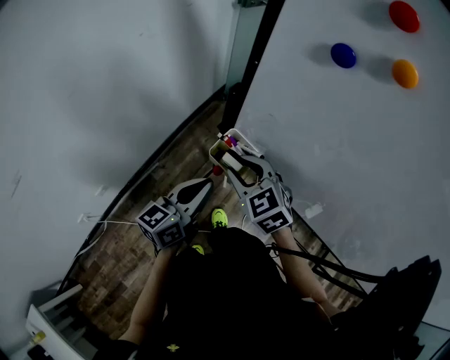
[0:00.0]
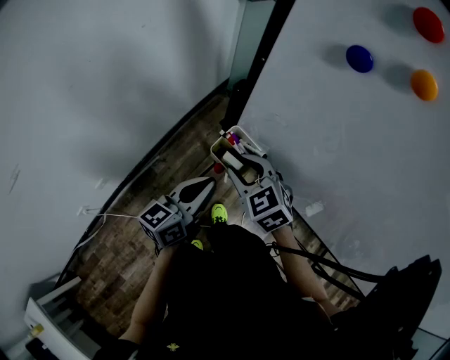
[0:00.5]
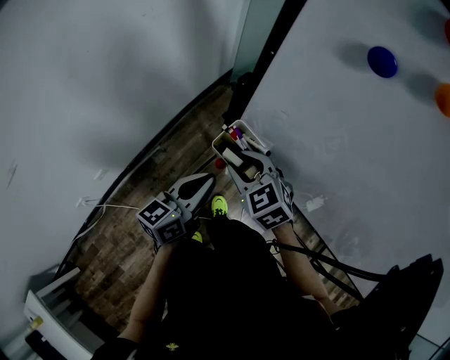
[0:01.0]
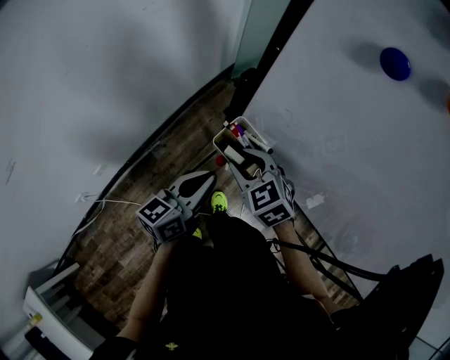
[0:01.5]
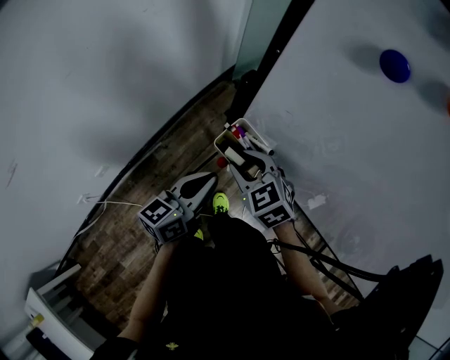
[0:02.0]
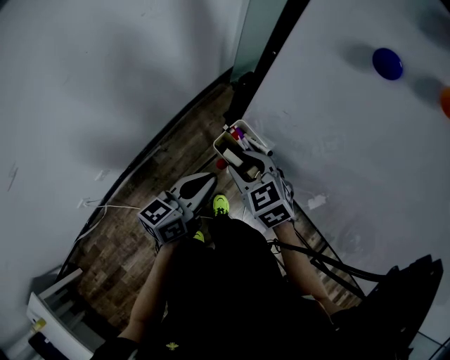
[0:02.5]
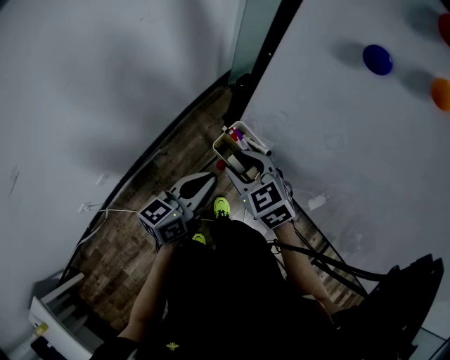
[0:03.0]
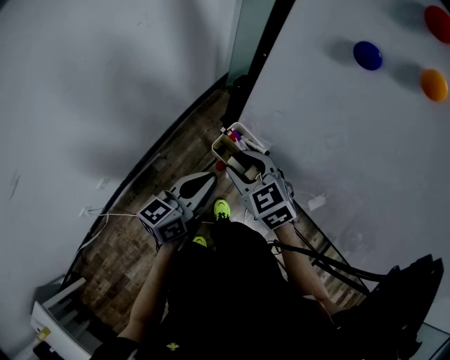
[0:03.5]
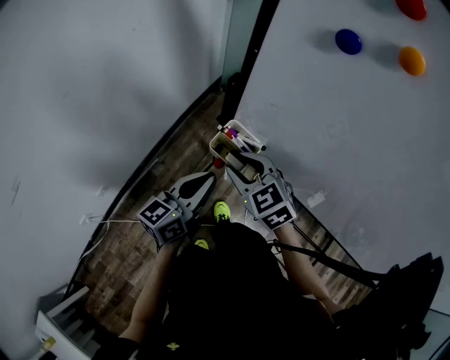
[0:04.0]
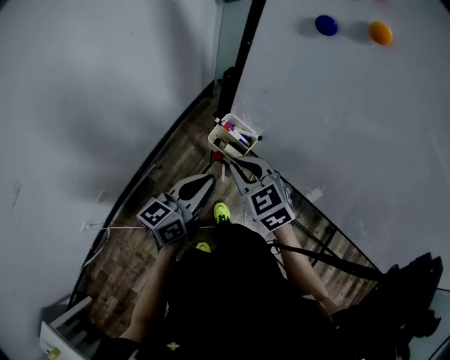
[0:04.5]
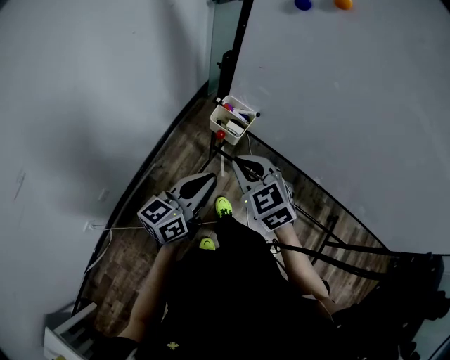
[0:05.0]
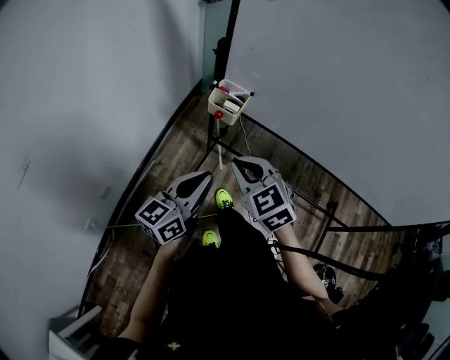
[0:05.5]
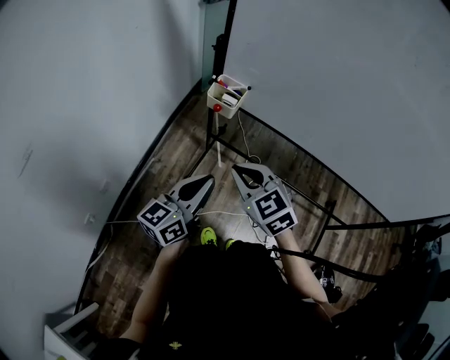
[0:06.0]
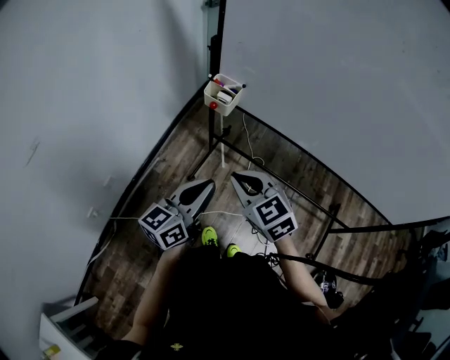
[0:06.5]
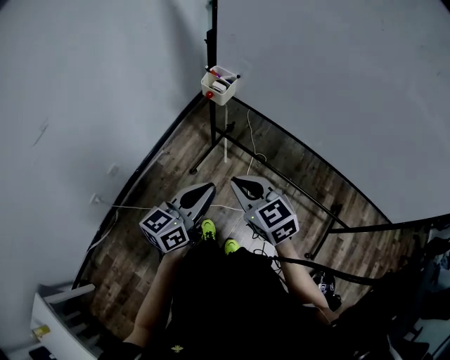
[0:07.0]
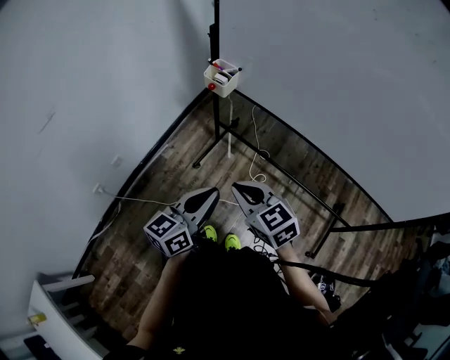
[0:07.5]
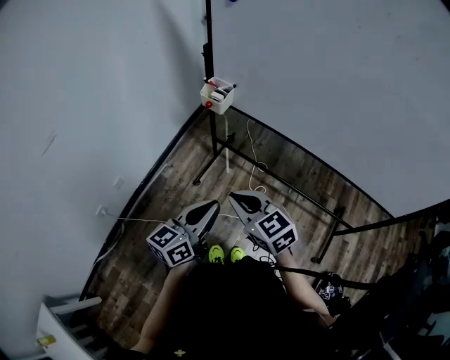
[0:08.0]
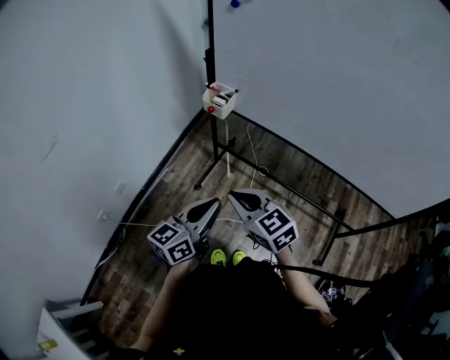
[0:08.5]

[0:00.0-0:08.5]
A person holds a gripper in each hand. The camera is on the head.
0.0 to 4.0 s: The grippers move only a little.
4.0 to 6.5 s: The two grippers go roughly 30 cm backward. The right gripper closes its fingers.
6.5 to 8.5 s: The two grippers go approximately 10 cm backward.

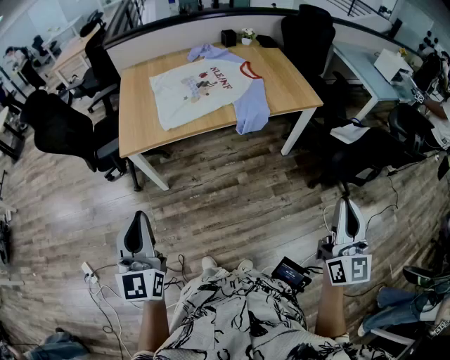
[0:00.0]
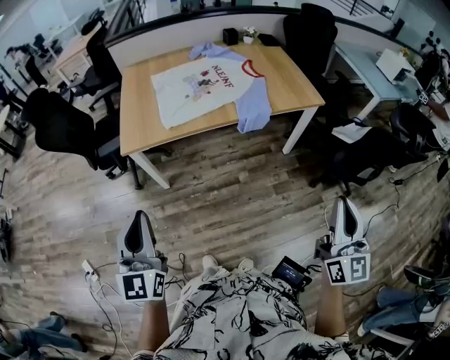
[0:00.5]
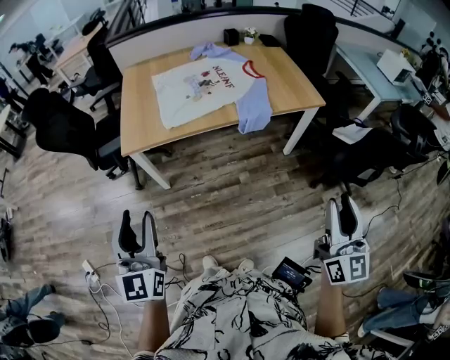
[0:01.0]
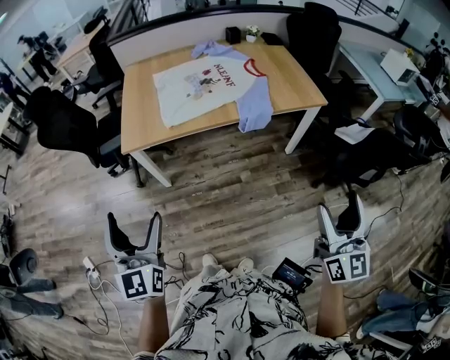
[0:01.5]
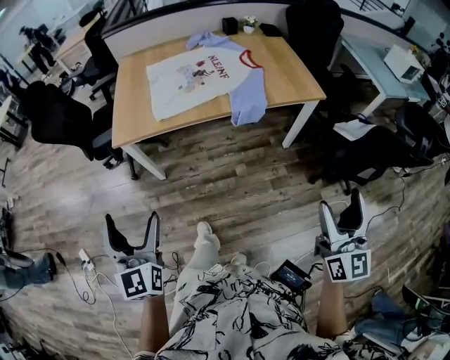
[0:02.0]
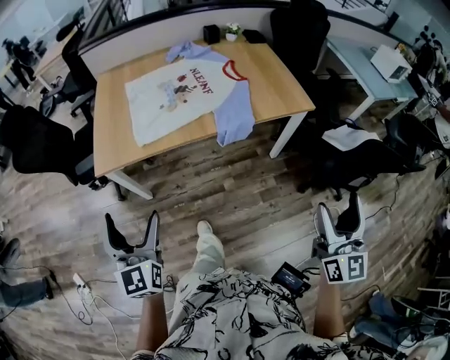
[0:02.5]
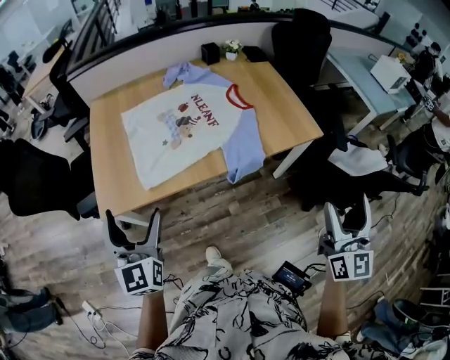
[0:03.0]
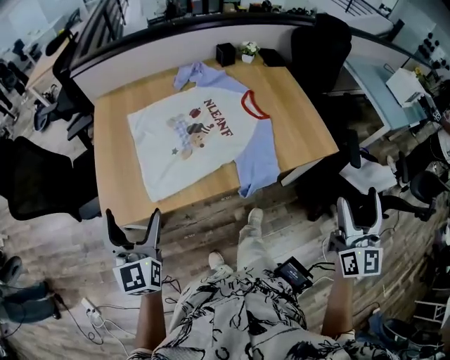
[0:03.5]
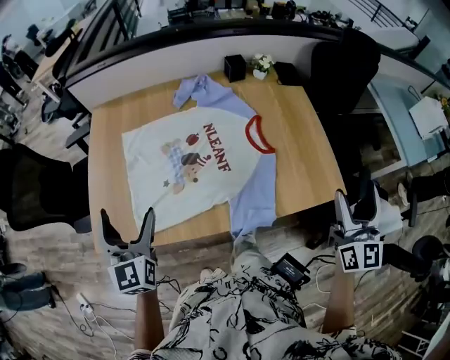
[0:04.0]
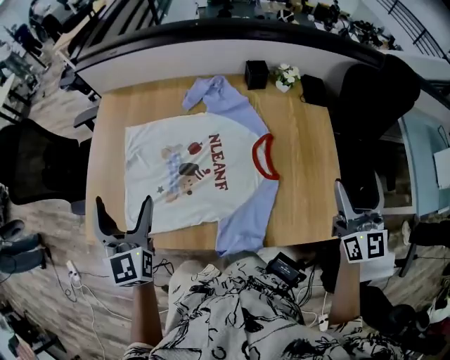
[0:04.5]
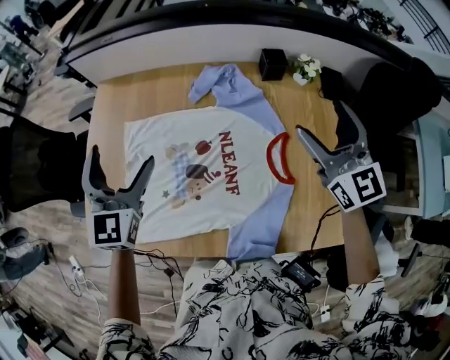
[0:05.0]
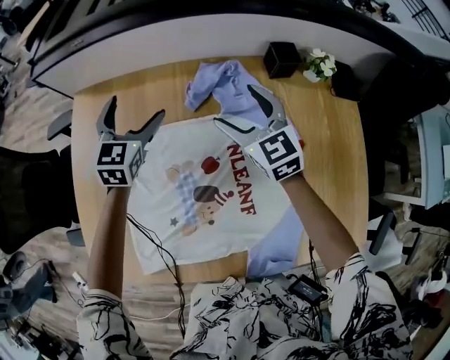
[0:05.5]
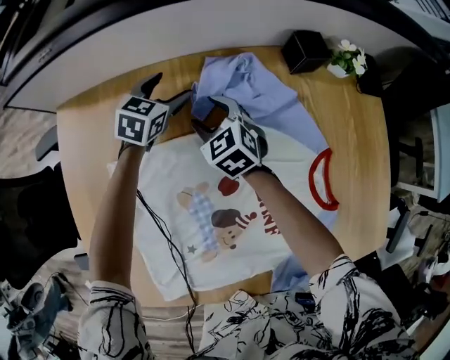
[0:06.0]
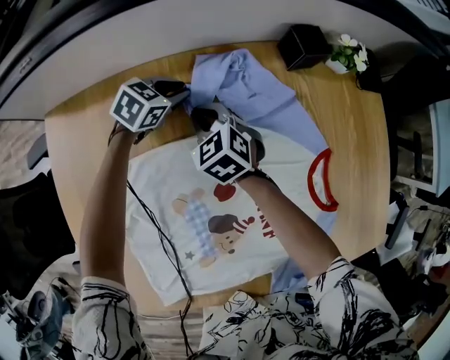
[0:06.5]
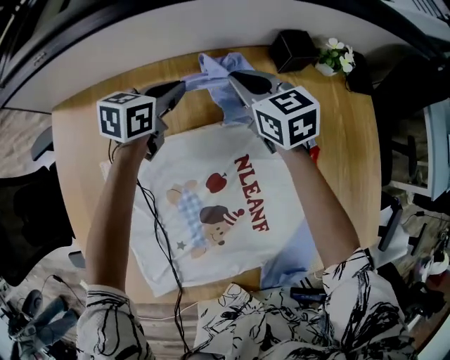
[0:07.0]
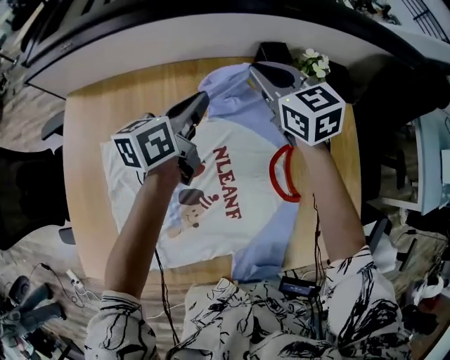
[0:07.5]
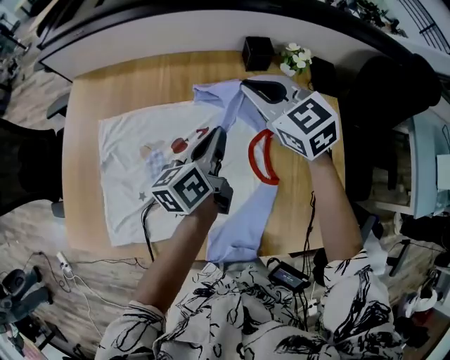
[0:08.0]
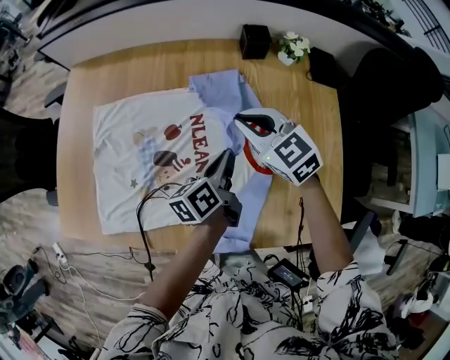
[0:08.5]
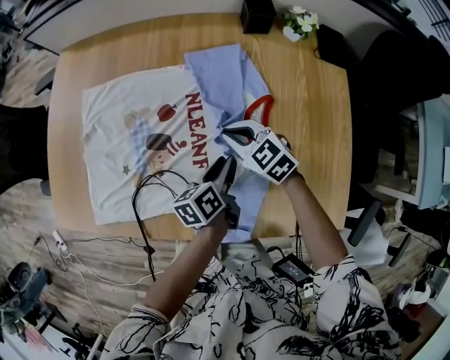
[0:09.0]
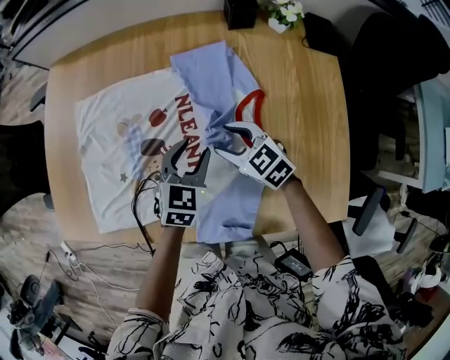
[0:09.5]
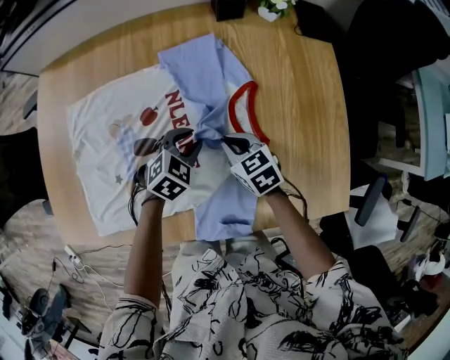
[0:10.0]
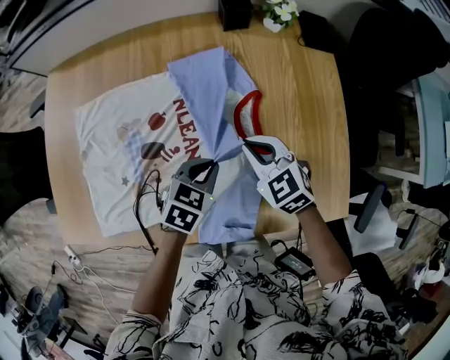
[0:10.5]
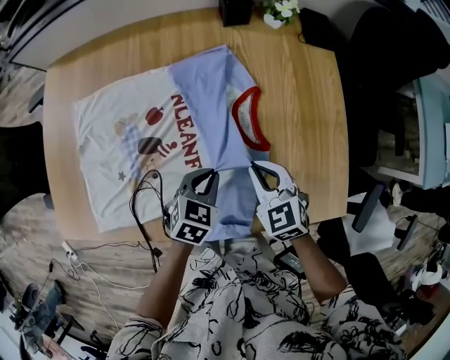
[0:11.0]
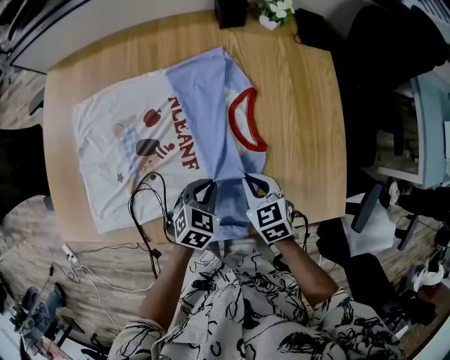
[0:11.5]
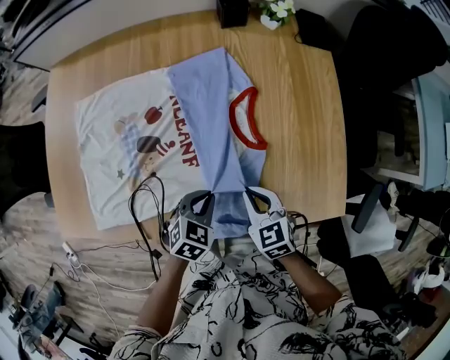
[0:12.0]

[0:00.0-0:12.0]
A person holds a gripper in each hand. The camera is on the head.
0.0 to 2.0 s: The left gripper opens up. The right gripper moves to the right, roughly 5 cm, and opens its fingers.
2.0 to 4.0 s: The two grippers travel together, forward, about 60 cm.
4.0 to 6.0 s: The left gripper shifts approximately 70 cm forward and downward, and tips its fingers downward by some 30 degrees. Meanwhile the right gripper moves forward, downward and to the left, approximately 80 cm, and angles its fingers downward, by roughly 40 degrees.
6.0 to 8.0 s: The right gripper changes place by some 35 cm, and closes. Meanwhile the left gripper shifts by about 40 cm, rolls counterclockwise, seen from behind, by about 60 degrees, and closes its fingers.
8.0 to 10.0 s: The left gripper moves up and down over about 20 cm, changing direction 2 times, and rotates around the line of its fingers by some 70 degrees, clockwise from behind. Meanwhile the right gripper is displaced downward and backward by some 35 cm, changes its angle by some 30 degrees, and opens, then closes again.
10.0 to 12.0 s: The right gripper goes some 15 cm backward and to the right; the left gripper shifts some 15 cm backward.

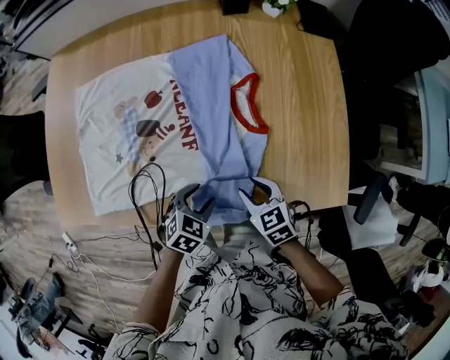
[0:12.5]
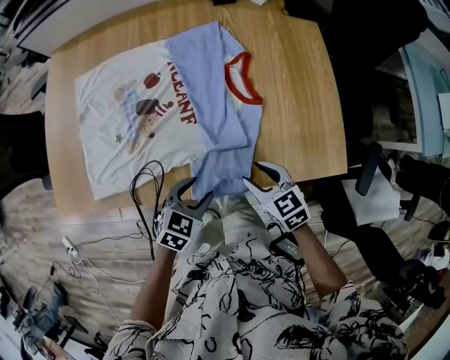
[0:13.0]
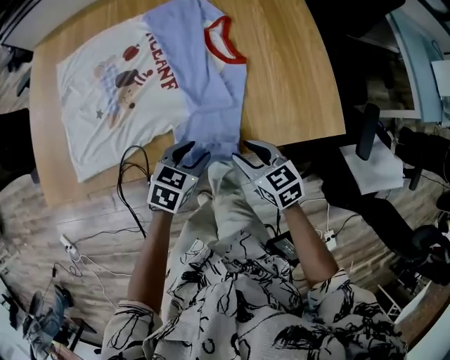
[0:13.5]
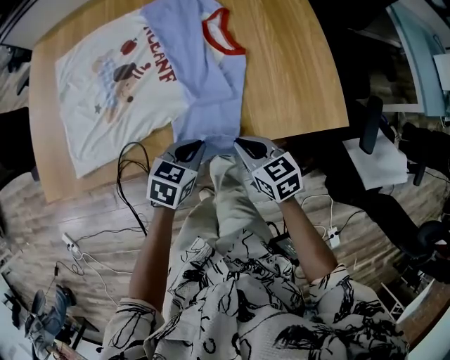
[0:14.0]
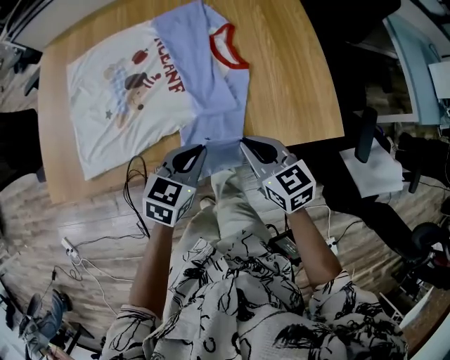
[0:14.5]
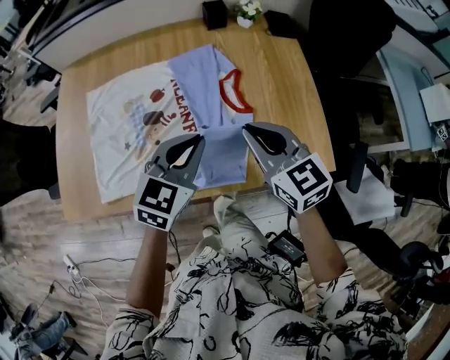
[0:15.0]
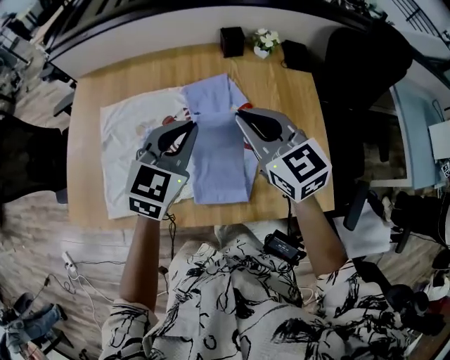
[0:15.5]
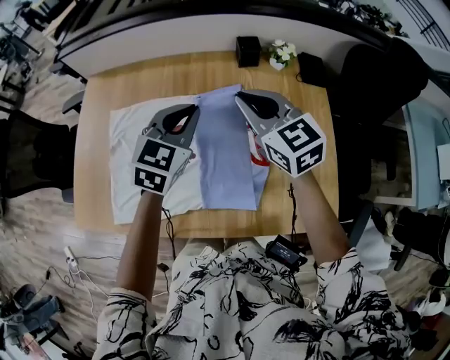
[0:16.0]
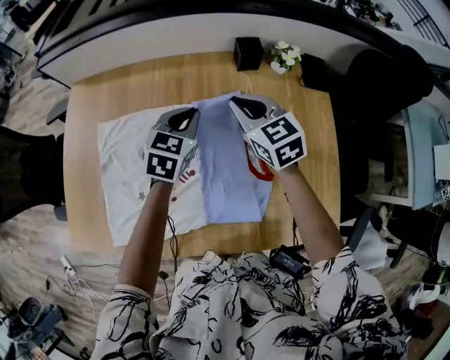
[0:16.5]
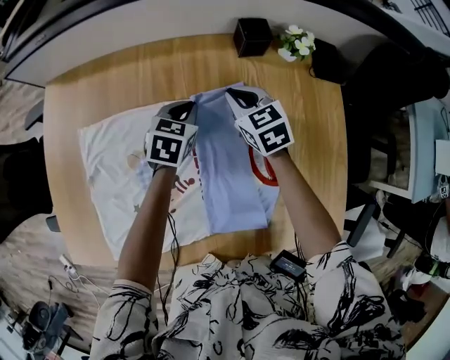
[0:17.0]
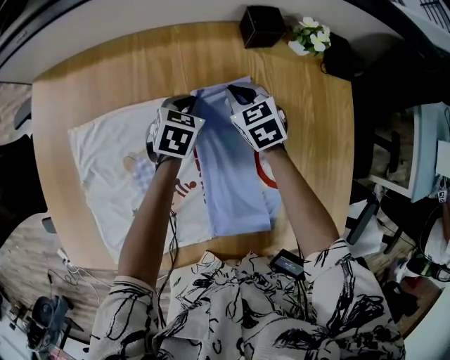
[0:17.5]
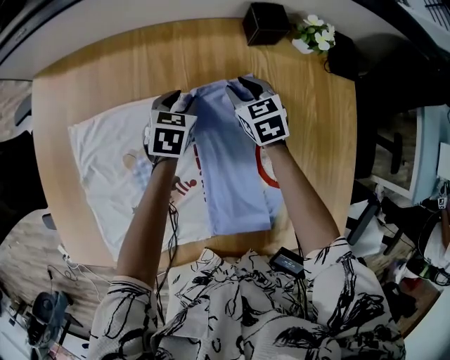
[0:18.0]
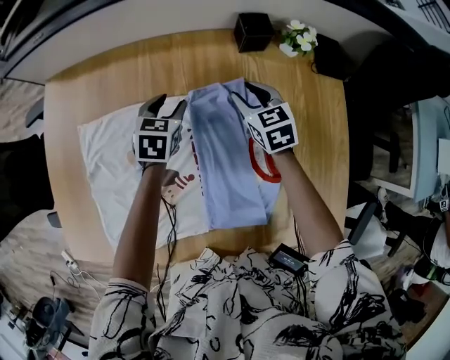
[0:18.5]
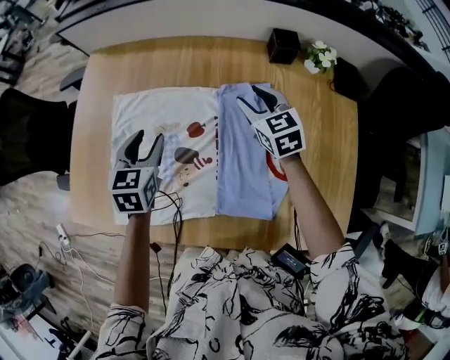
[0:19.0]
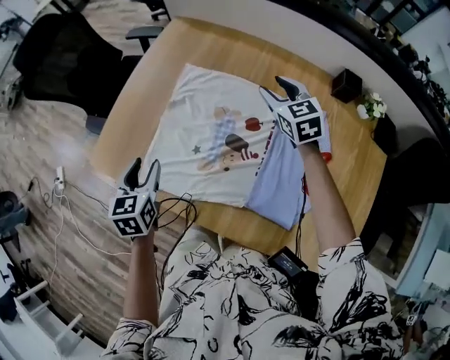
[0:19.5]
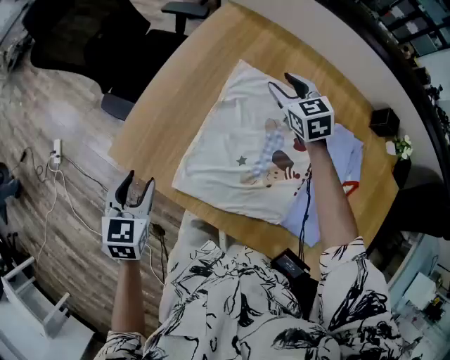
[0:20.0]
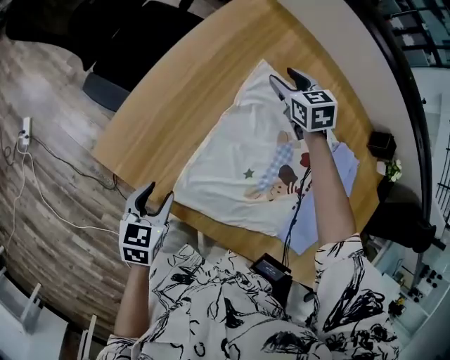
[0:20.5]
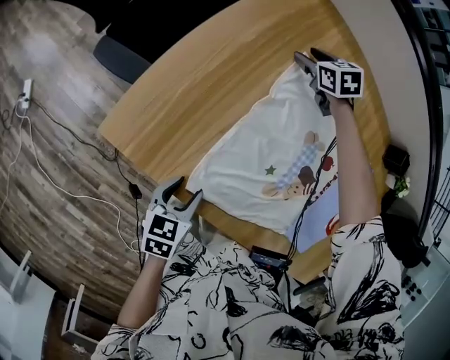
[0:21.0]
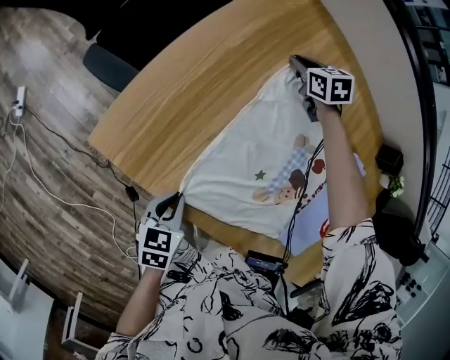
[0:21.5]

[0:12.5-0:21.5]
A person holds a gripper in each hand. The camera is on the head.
12.5 to 14.5 s: Both grippers move upward and backward, approximately 10 cm. The right gripper changes its angle by roughly 20 degrees, and closes up. Meanwhile the left gripper changes its angle by about 20 degrees, and closes.
14.5 to 17.0 s: The pair of grippers is taken forward, about 50 cm.
17.0 to 19.5 s: The right gripper ends up some 25 cm from where it was, swivels approximately 30 degrees, and opens. The left gripper moves some 50 cm, changes its angle by roughly 50 degrees, and opens up.
19.5 to 21.5 s: The right gripper moves to the left, forward and downward, approximately 40 cm, turns by about 30 degrees, and closes, while the left gripper travels downward and to the left by some 20 cm, rotates roughly 30 degrees, and closes its fingers.
